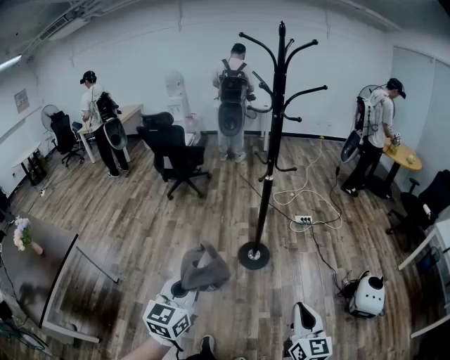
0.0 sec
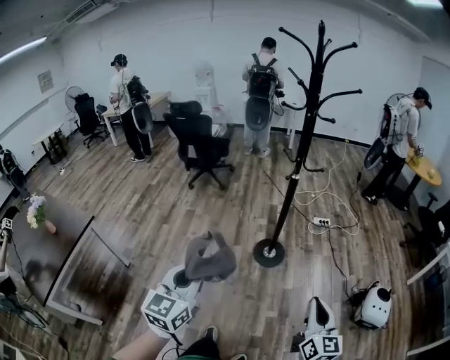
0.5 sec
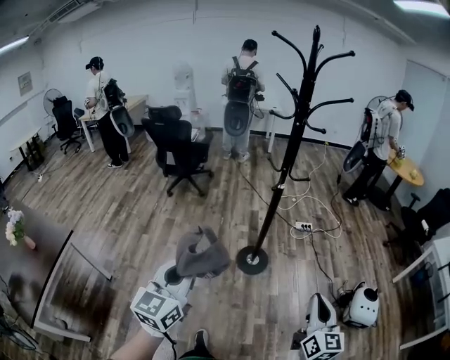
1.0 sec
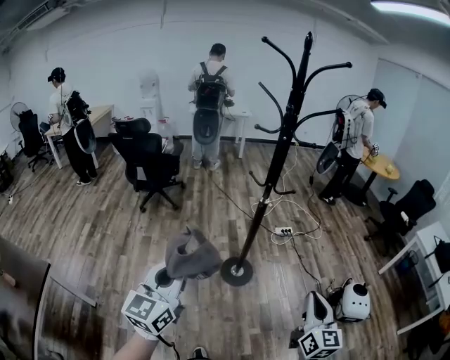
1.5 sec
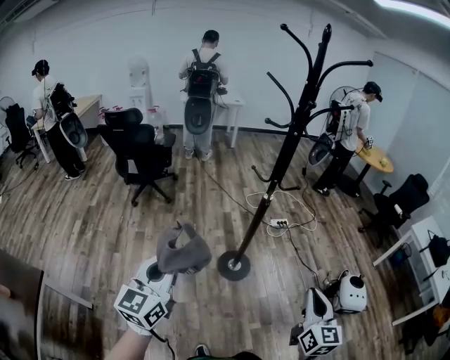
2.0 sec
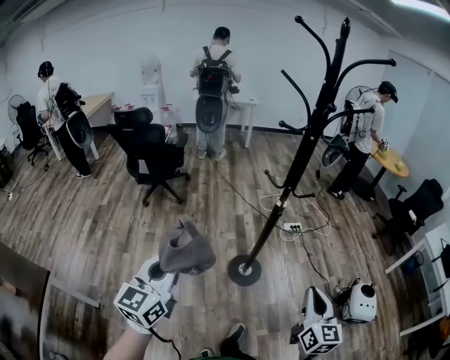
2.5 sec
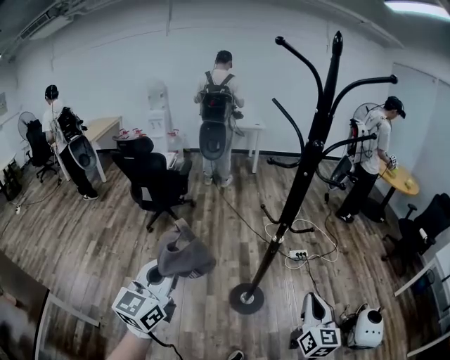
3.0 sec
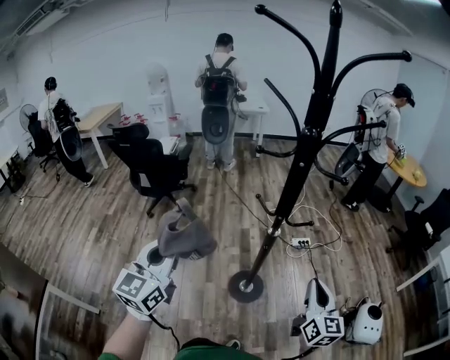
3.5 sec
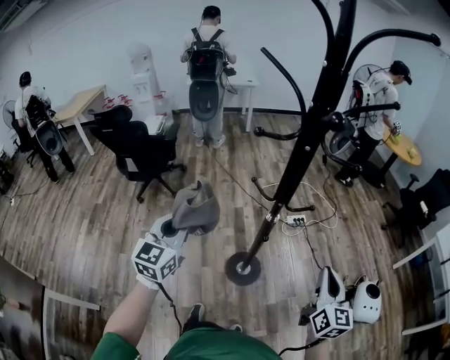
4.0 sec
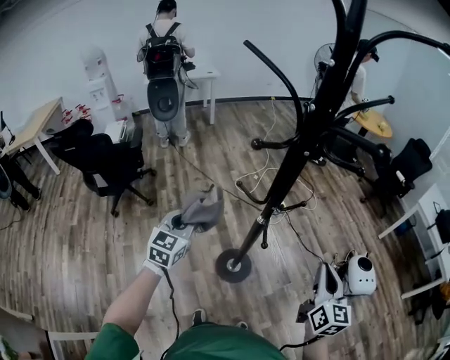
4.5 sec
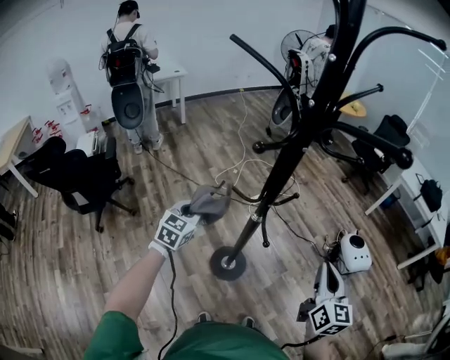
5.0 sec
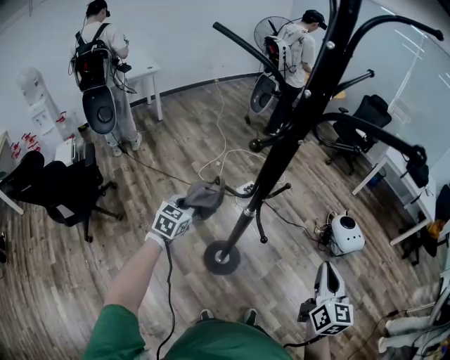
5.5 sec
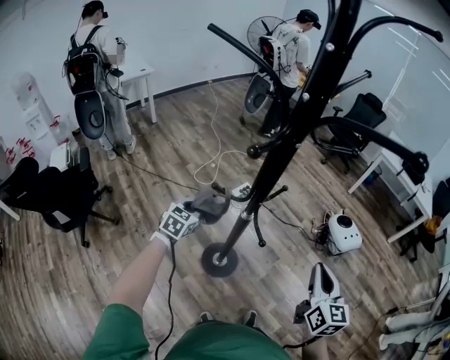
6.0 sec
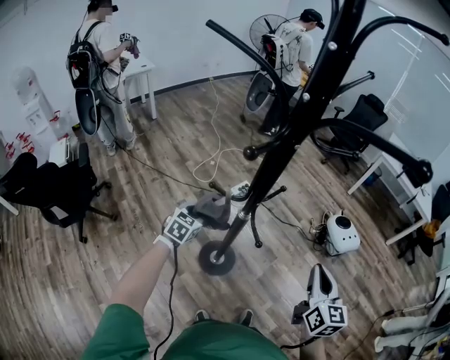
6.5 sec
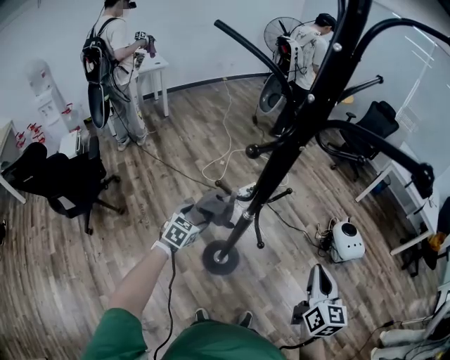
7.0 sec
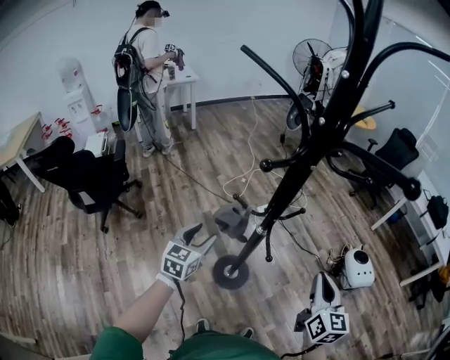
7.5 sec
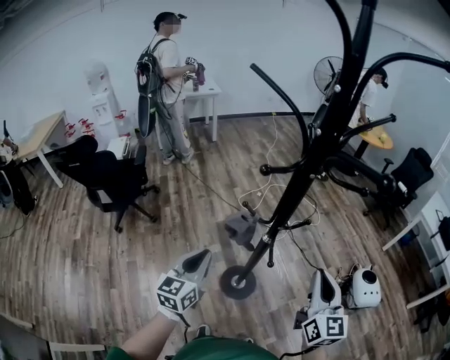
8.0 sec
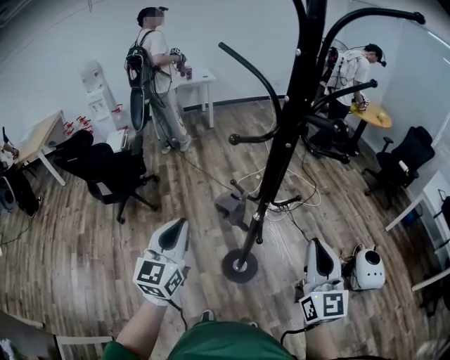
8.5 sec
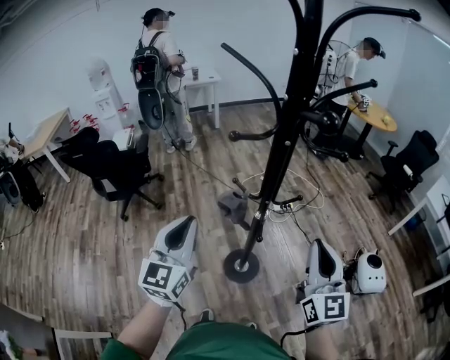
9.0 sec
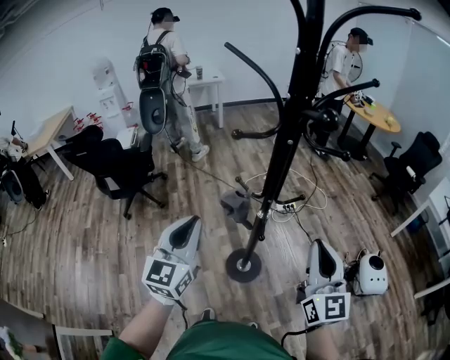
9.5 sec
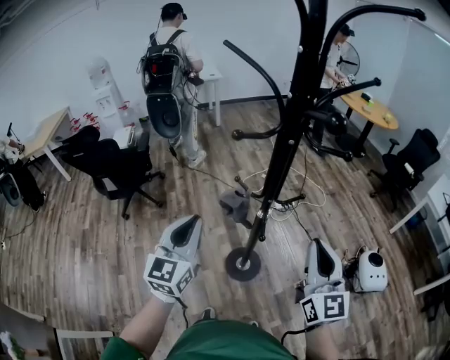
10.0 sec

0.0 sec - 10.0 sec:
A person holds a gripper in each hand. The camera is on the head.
0.0 sec - 2.0 sec: The grippers both shift forward and to the left by some 25 cm.
2.0 sec - 4.0 sec: Both grippers travel together forward, approximately 30 cm.
4.0 sec - 6.0 sec: The left gripper ends up about 35 cm from where it was, and rotates roughly 50 degrees. The right gripper changes place by roughly 10 cm, and swivels some 30 degrees.
6.0 sec - 8.0 sec: The right gripper goes some 5 cm upward, and rotates approximately 30 degrees; the left gripper heads backward and upward, covering some 25 cm, swivels about 40 degrees, and opens, then closes again.
8.0 sec - 10.0 sec: The left gripper shifts roughly 10 cm upward.

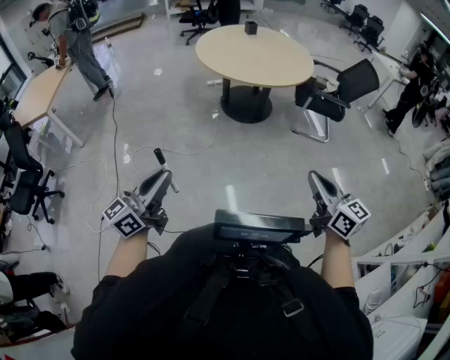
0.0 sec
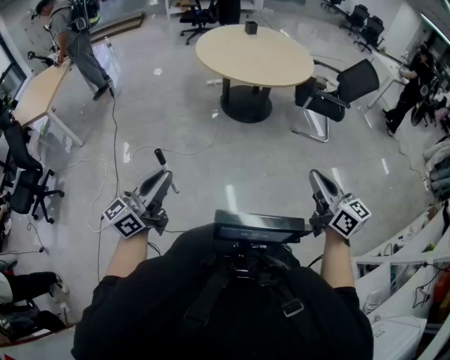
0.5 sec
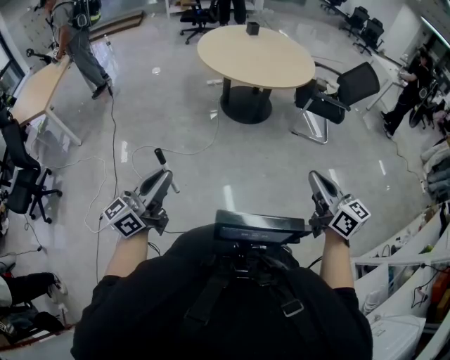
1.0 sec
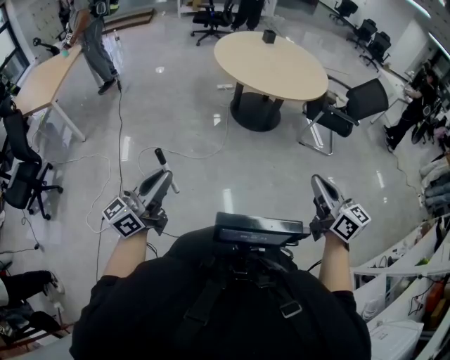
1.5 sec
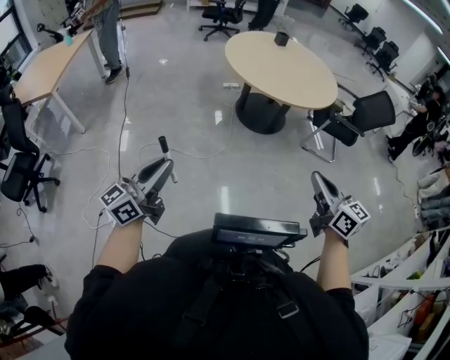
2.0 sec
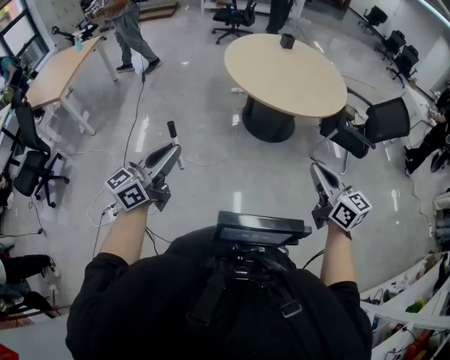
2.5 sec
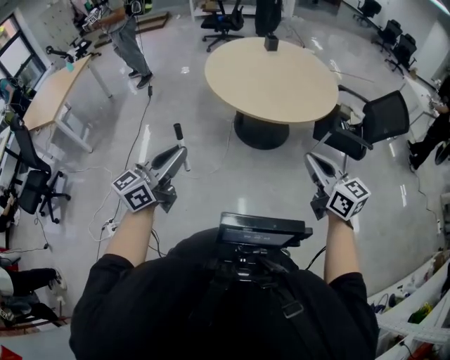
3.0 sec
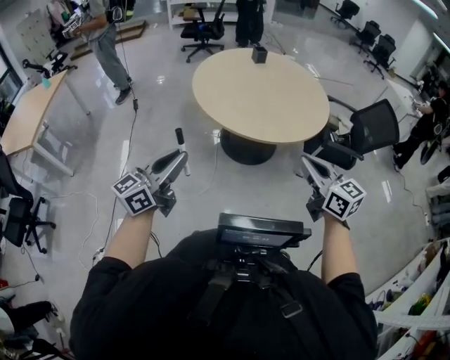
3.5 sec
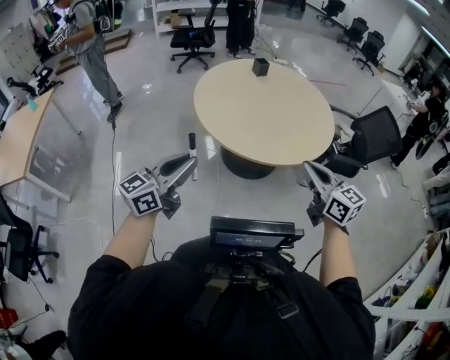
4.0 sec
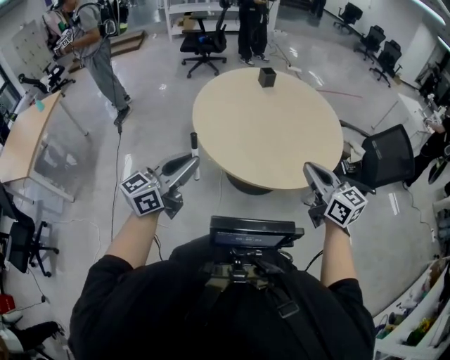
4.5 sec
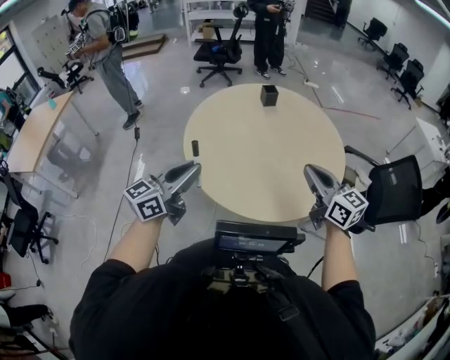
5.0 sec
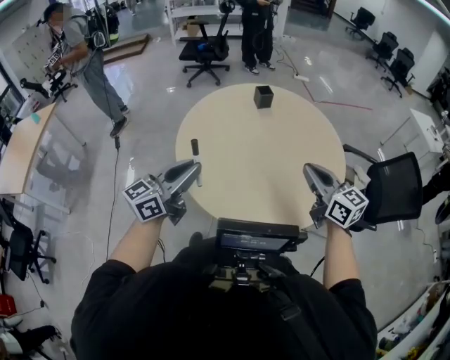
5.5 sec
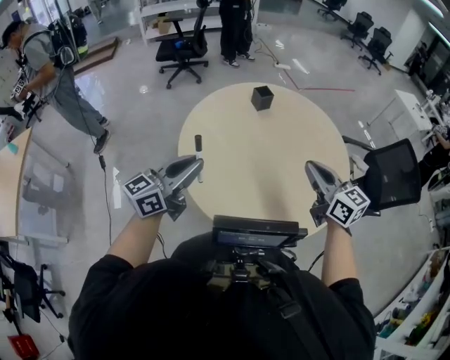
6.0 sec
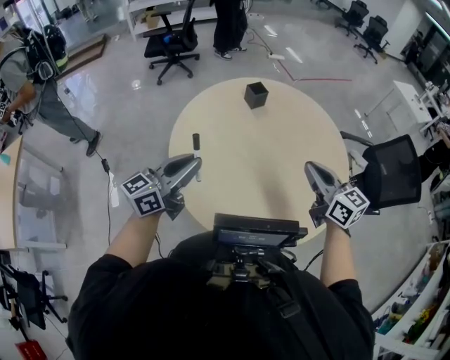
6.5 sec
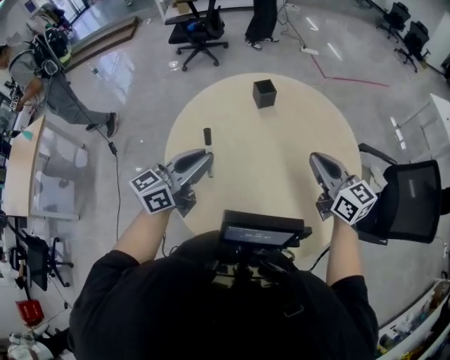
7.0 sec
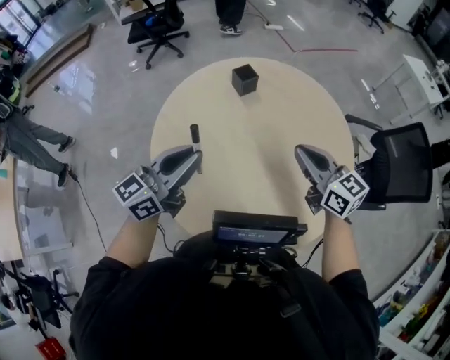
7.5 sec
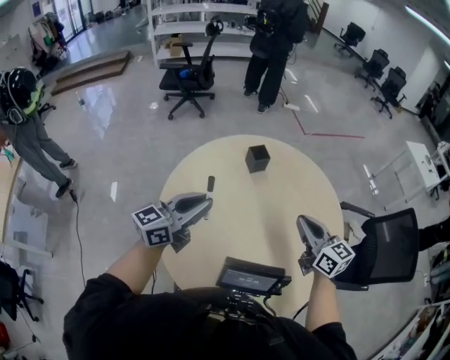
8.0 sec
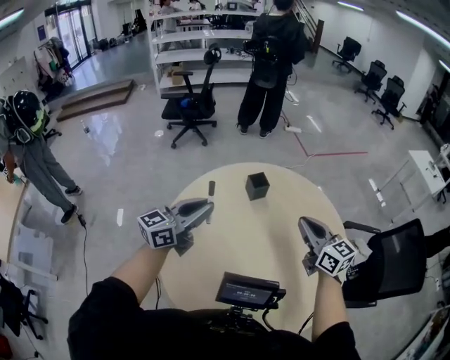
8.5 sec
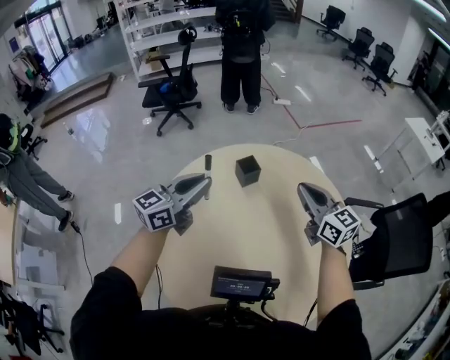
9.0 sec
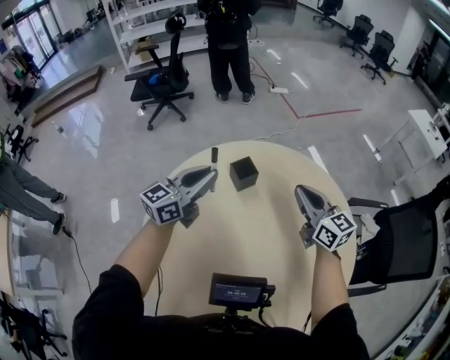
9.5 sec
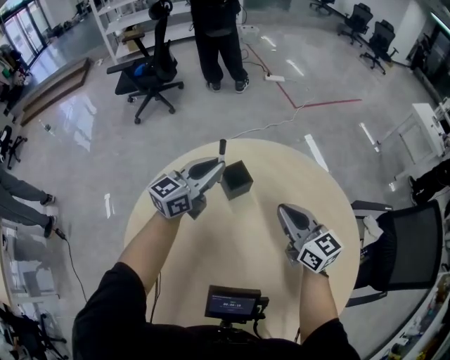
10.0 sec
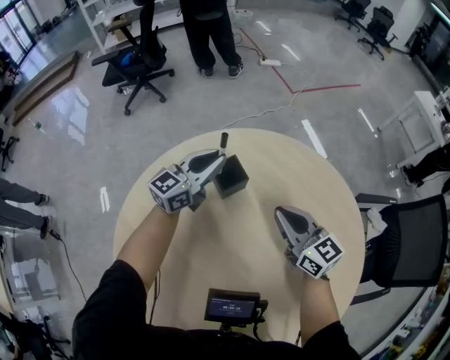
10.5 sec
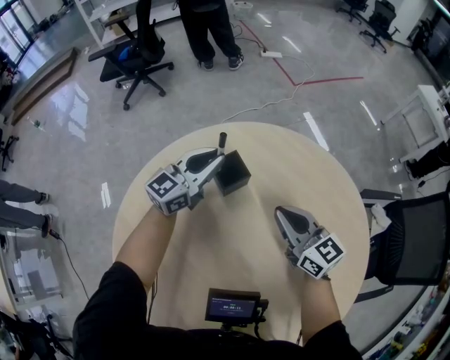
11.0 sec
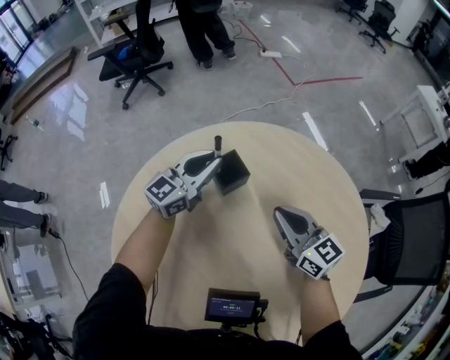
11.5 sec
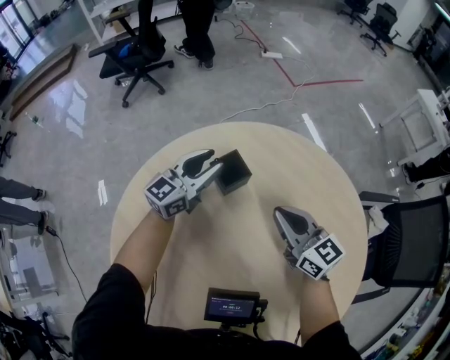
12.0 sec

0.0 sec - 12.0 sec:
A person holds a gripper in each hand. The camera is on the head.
0.0 sec - 2.0 sec: Both grippers travel together to the left and forward, approximately 20 cm.
2.0 sec - 4.0 sec: The two grippers travel together, forward, approximately 50 cm.
4.0 sec - 6.0 sec: The two grippers travel together, forward, approximately 40 cm.
6.0 sec - 8.0 sec: The left gripper goes roughly 25 cm forward and to the right; the right gripper is displaced forward by approximately 20 cm.
8.0 sec - 10.0 sec: The right gripper moves forward and downward, approximately 30 cm; the left gripper shifts about 40 cm forward.
10.0 sec - 12.0 sec: The left gripper moves downward, about 10 cm, and opens its fingers. The right gripper travels downward by roughly 5 cm.

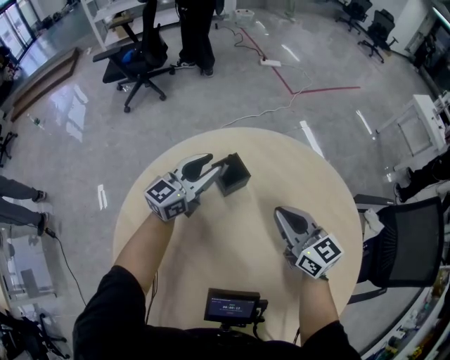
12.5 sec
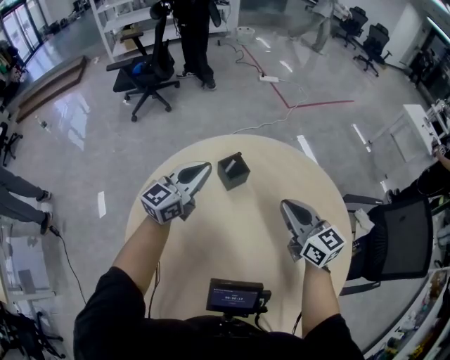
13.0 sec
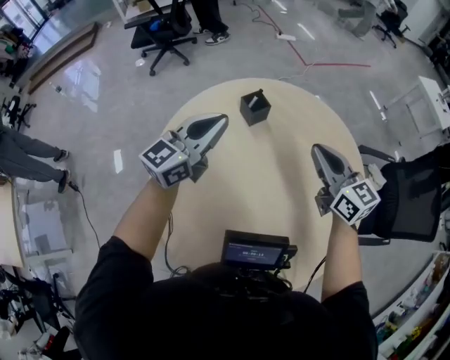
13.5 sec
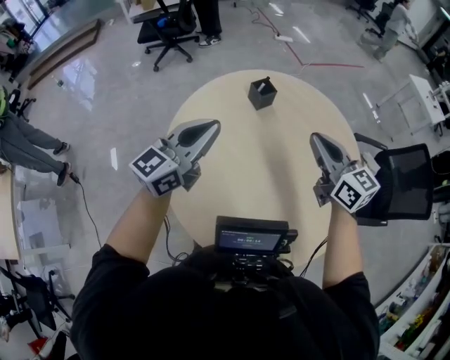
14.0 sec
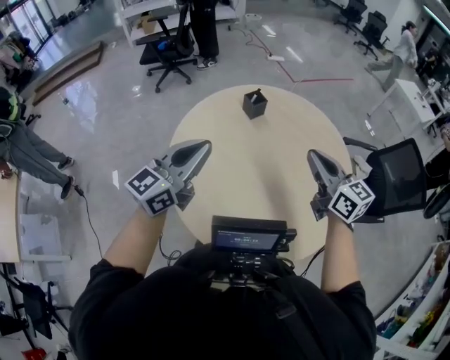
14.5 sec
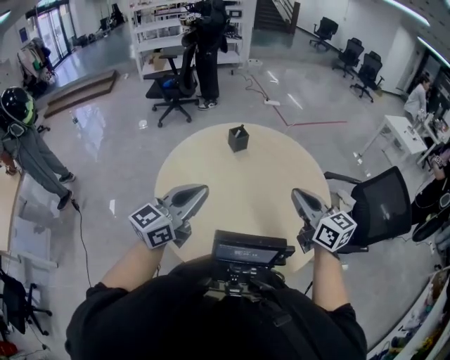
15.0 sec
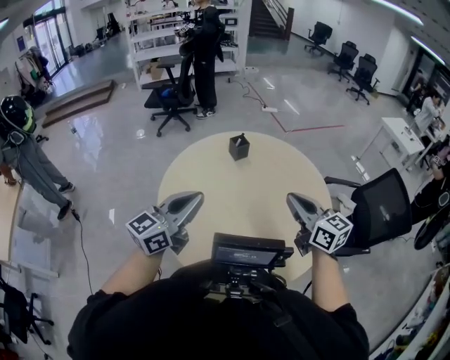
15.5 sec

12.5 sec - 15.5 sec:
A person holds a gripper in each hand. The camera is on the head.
12.5 sec - 14.0 sec: Both grippers move backward and upward, some 35 cm. The left gripper closes up.
14.0 sec - 15.5 sec: Both grippers move backward and to the right, approximately 20 cm.

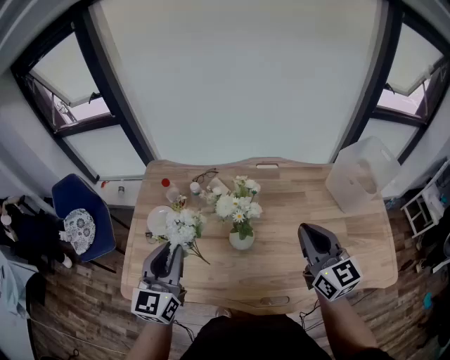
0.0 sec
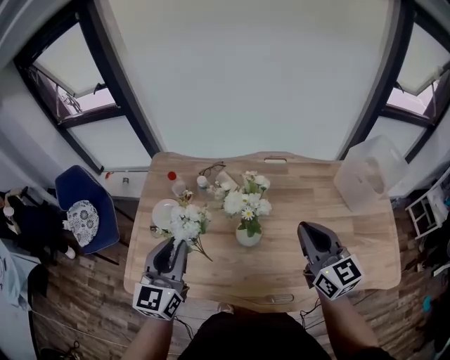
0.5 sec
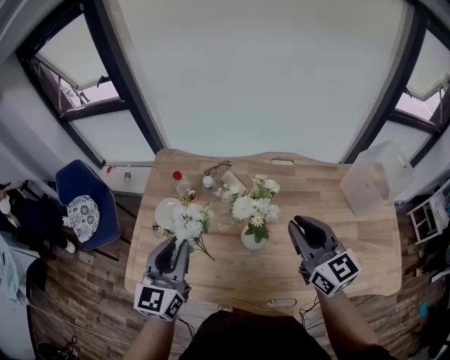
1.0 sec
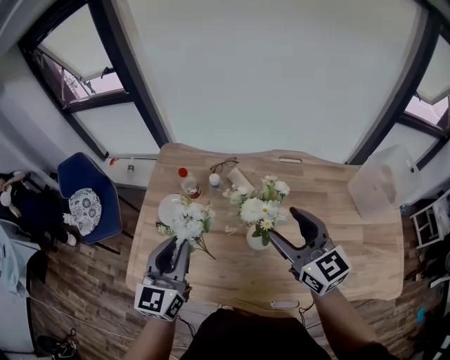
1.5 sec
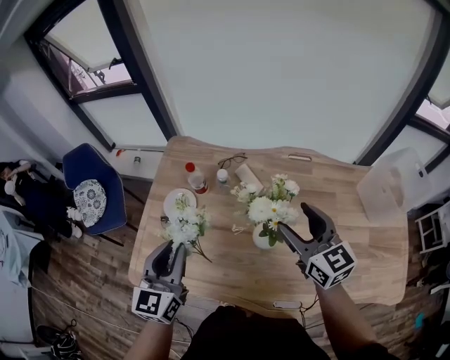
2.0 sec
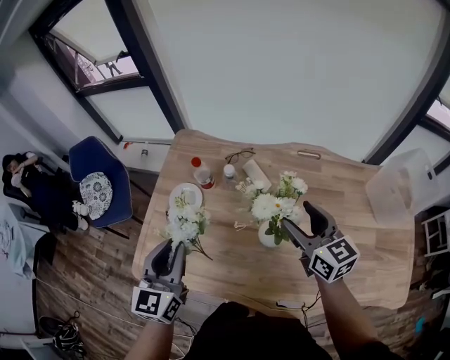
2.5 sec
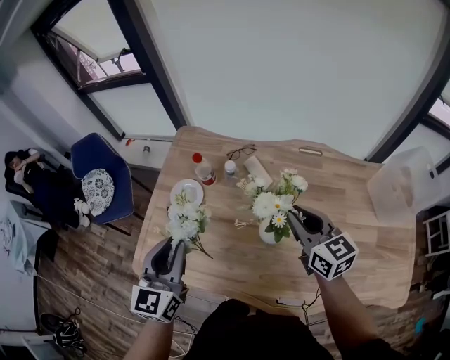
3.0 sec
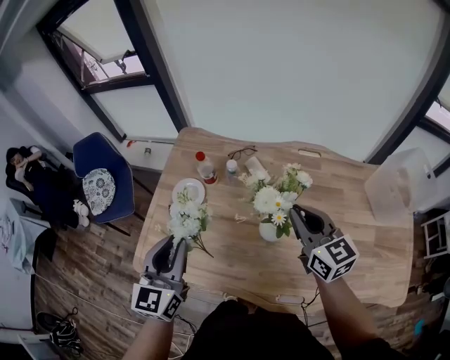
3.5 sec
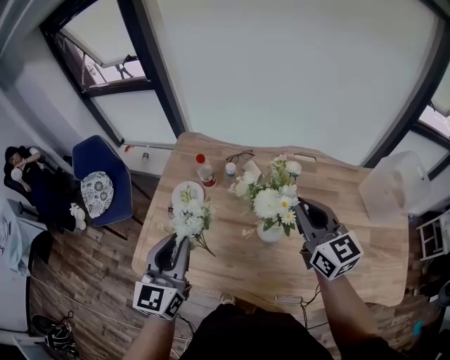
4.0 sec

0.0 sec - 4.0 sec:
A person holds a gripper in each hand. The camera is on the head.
0.0 sec - 2.0 sec: The right gripper shifts about 15 cm forward and to the left, and opens up. The left gripper heads to the left, covering some 5 cm.
2.0 sec - 4.0 sec: The right gripper closes its fingers.
